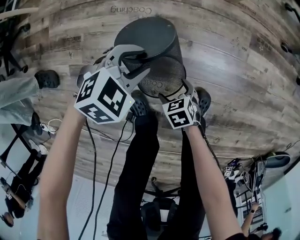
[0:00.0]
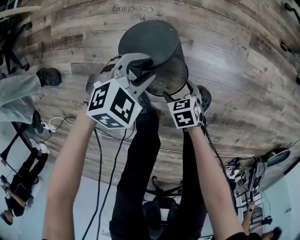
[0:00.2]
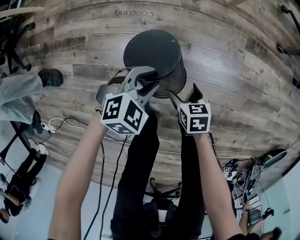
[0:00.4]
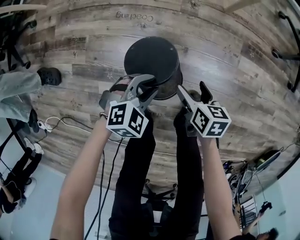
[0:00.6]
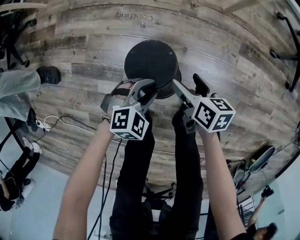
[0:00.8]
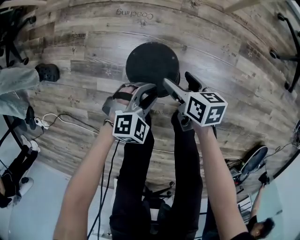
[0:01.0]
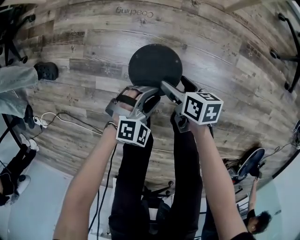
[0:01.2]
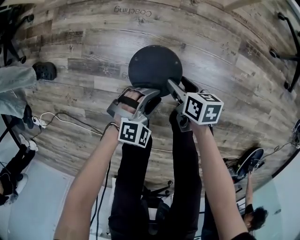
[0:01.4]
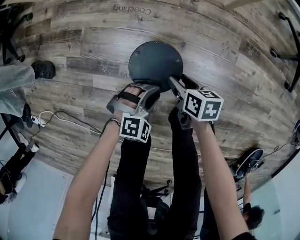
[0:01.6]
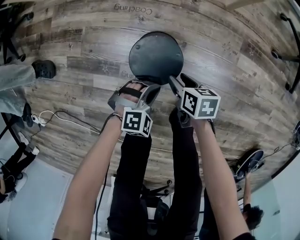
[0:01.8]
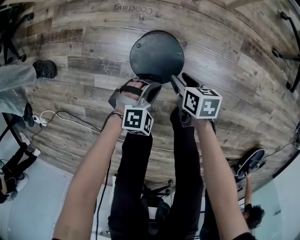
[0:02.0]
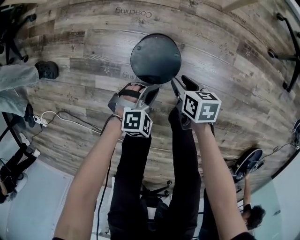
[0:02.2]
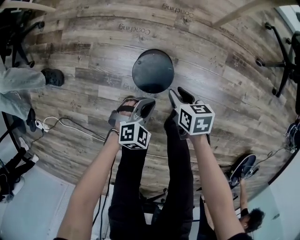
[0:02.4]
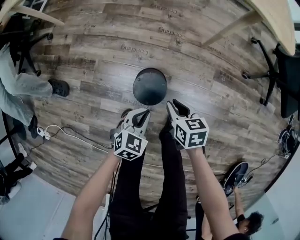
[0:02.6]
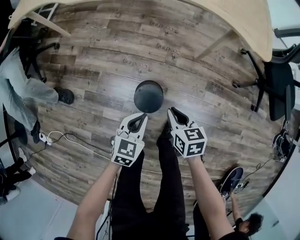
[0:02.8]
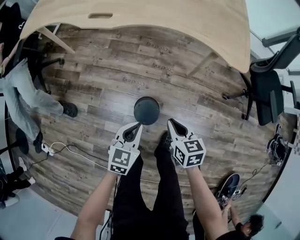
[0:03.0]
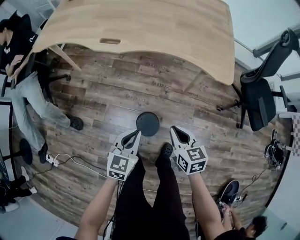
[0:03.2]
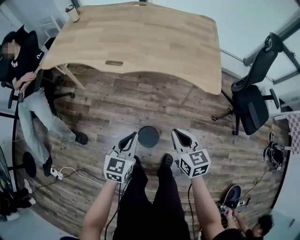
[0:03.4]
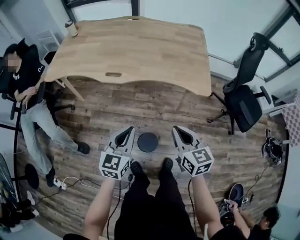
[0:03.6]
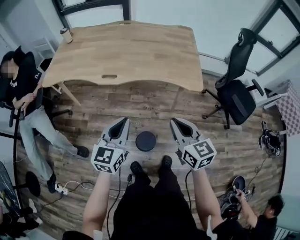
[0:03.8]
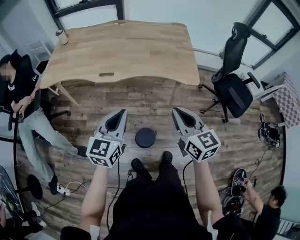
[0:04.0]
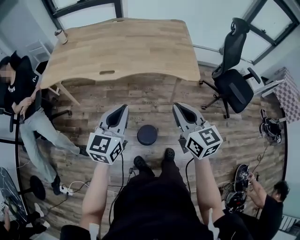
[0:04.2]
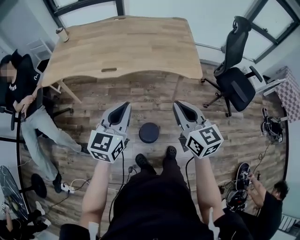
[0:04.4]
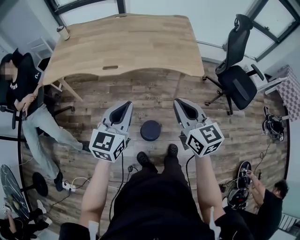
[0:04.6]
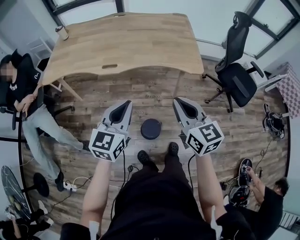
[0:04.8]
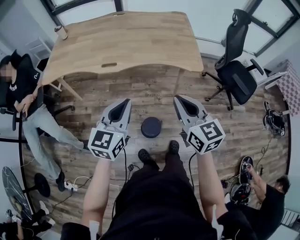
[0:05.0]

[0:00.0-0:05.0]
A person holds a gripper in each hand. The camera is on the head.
0:00.0 to 0:01.6: The left gripper shifts by roughly 15 cm. Meanwhile the right gripper is displaced upward by approximately 10 cm, changes its angle by some 30 degrees, and closes up.
0:01.6 to 0:03.4: The two grippers go roughly 60 cm upward. The left gripper tips its fingers upward by some 30 degrees. Meanwhile the right gripper swivels approximately 50 degrees, and closes its fingers.
0:03.4 to 0:05.0: The grippers both shift upward by approximately 20 cm. The right gripper rotates about 20 degrees.

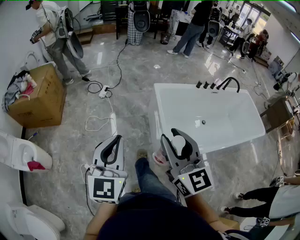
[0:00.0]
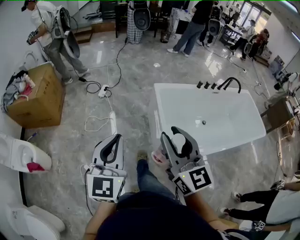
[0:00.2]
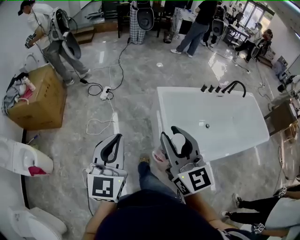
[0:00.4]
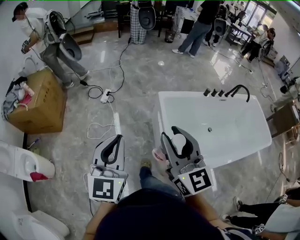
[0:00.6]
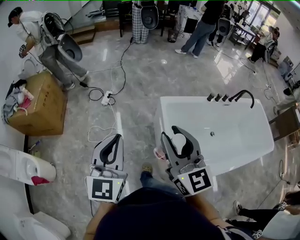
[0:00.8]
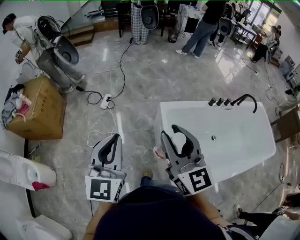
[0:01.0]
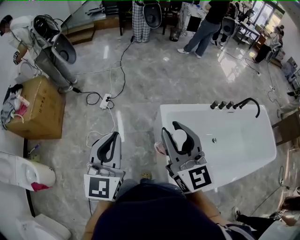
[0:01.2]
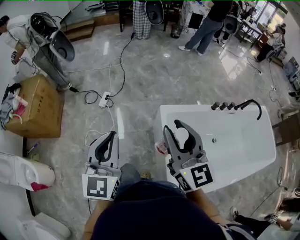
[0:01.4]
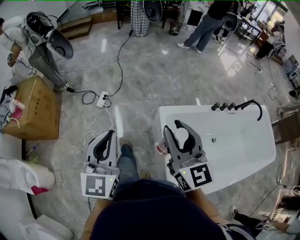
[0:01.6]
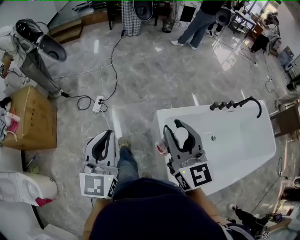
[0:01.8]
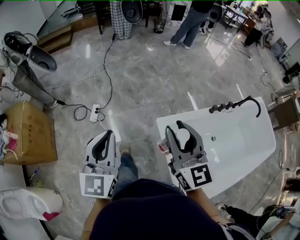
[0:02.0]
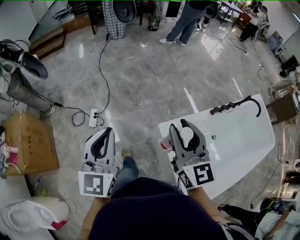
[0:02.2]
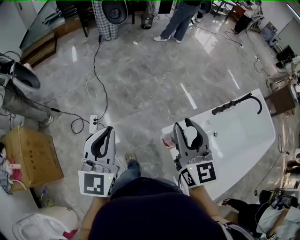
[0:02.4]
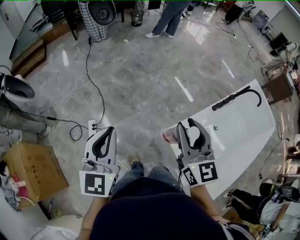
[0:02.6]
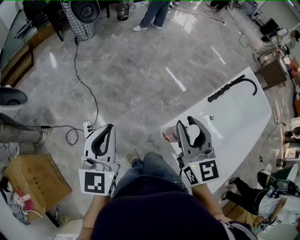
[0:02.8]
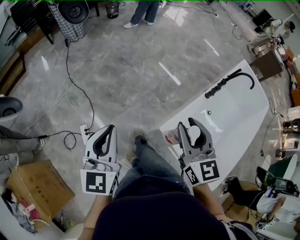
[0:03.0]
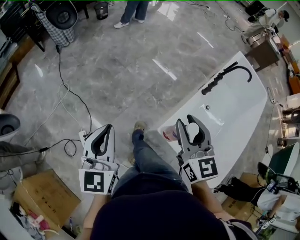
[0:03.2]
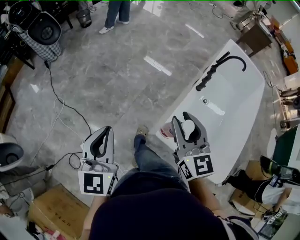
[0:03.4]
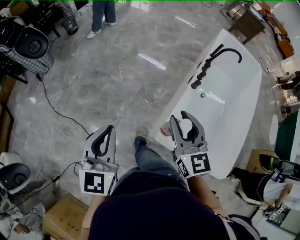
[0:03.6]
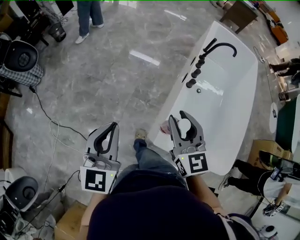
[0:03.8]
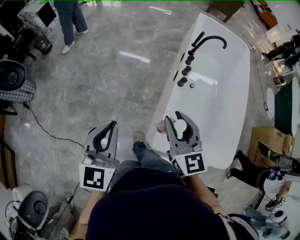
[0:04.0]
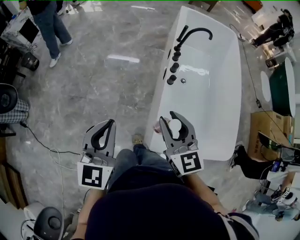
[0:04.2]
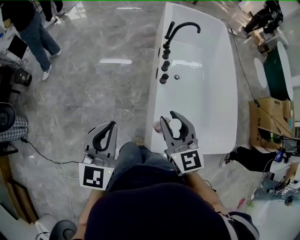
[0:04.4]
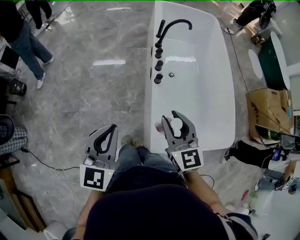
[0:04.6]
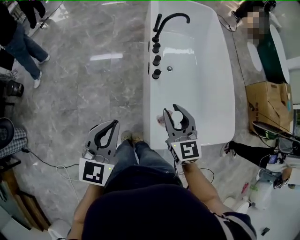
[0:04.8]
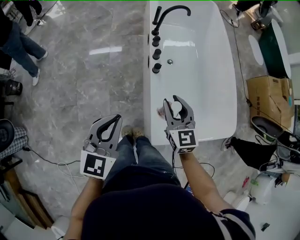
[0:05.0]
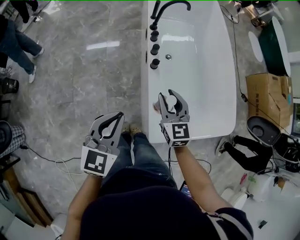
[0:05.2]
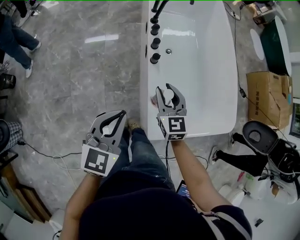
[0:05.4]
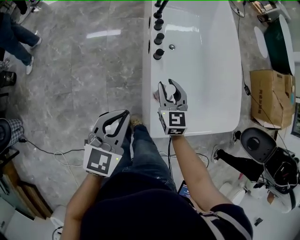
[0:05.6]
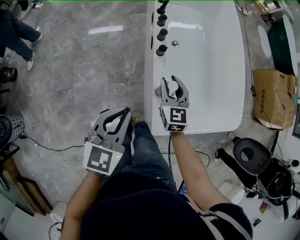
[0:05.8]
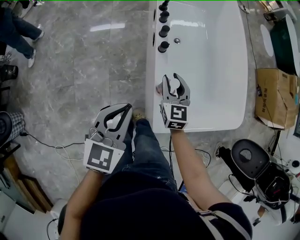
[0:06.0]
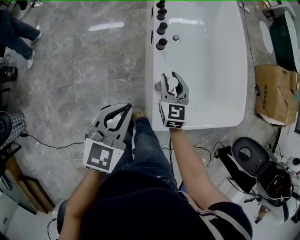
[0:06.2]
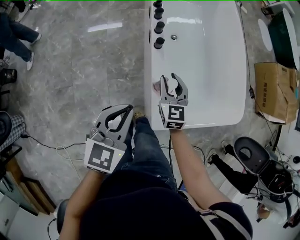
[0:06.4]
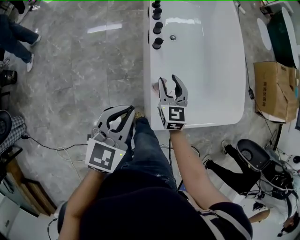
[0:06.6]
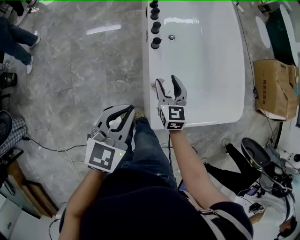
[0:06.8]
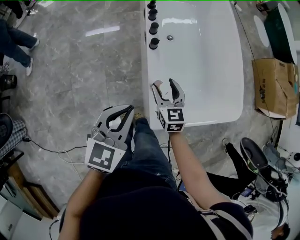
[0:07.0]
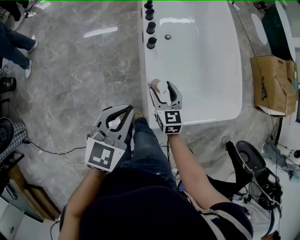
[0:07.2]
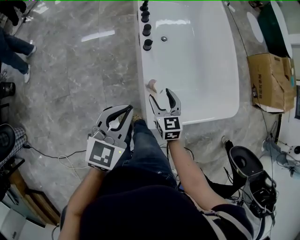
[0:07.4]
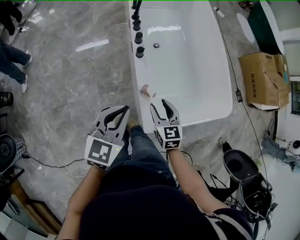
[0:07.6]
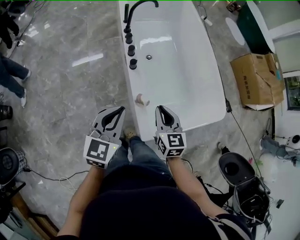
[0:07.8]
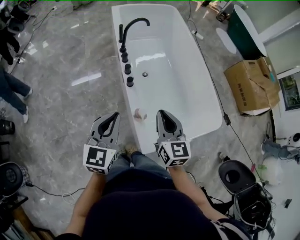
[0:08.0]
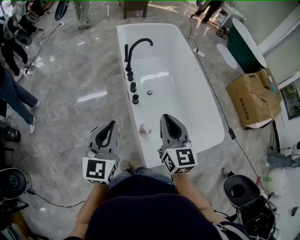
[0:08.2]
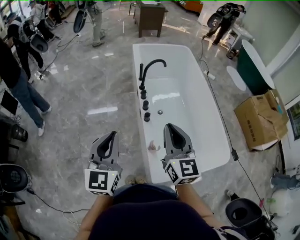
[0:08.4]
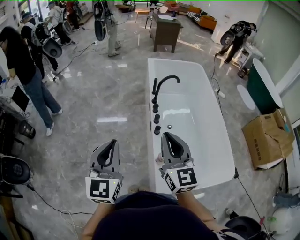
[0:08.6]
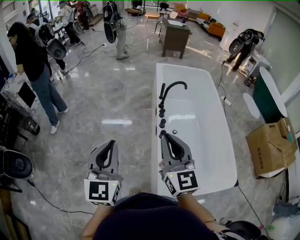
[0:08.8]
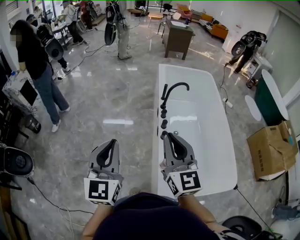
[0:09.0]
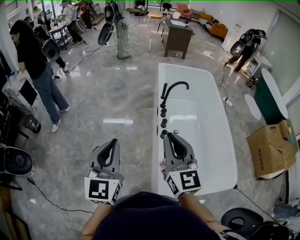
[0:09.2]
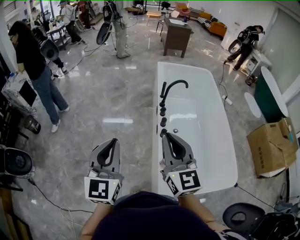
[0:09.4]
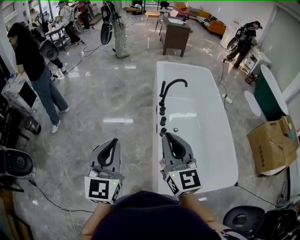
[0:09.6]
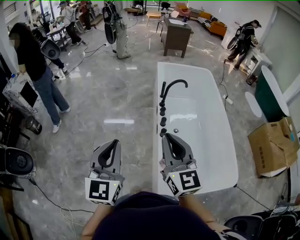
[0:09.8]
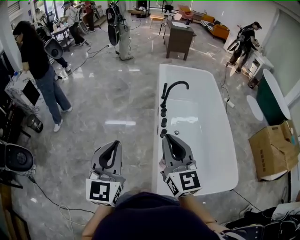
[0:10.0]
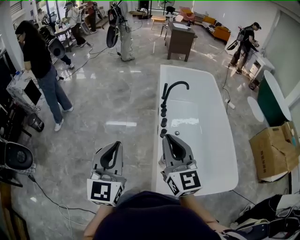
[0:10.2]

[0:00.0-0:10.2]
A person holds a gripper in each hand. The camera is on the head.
0:00.0 to 0:01.4: Both grippers are carried forward, some 40 cm.
0:01.4 to 0:03.0: The right gripper changes place by about 40 cm, and changes its angle by roughly 40 degrees; the left gripper ends up roughly 50 cm from where it was, and swivels some 30 degrees.
0:03.0 to 0:04.4: The right gripper changes place by roughly 30 cm, and swivels approximately 40 degrees, while the left gripper moves about 40 cm, and rotates roughly 50 degrees.
0:04.4 to 0:05.8: The left gripper heads downward, forward and to the right, covering roughly 15 cm, and changes its angle by approximately 30 degrees. The right gripper is displaced downward and forward by about 20 cm, and swivels some 20 degrees.
0:05.8 to 0:07.2: The right gripper travels backward by approximately 5 cm, and opens up. Meanwhile the left gripper moves to the right, approximately 5 cm.
0:07.2 to 0:08.8: The left gripper goes some 25 cm upward, and changes its angle by about 40 degrees, while the right gripper travels upward by approximately 40 cm, angles its fingers upward, by roughly 30 degrees, and closes its fingers.
0:08.8 to 0:10.2: The left gripper moves some 5 cm.

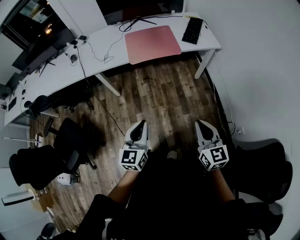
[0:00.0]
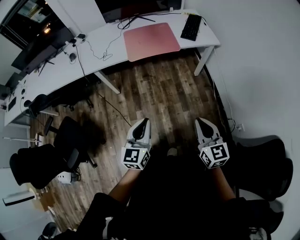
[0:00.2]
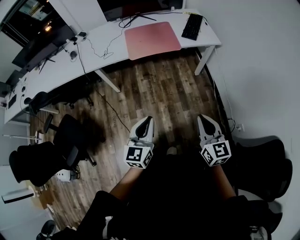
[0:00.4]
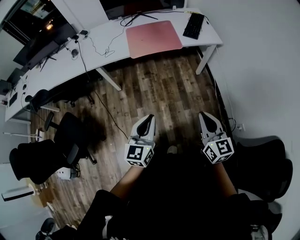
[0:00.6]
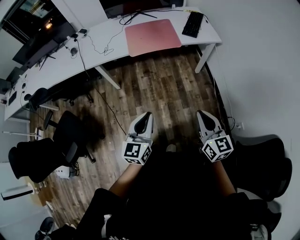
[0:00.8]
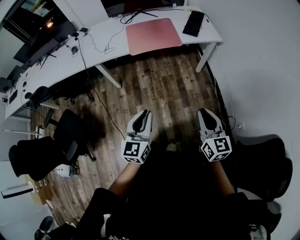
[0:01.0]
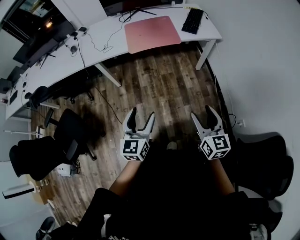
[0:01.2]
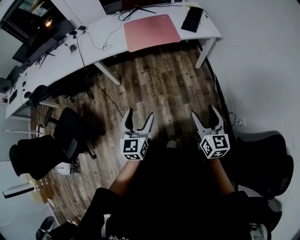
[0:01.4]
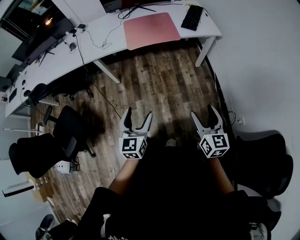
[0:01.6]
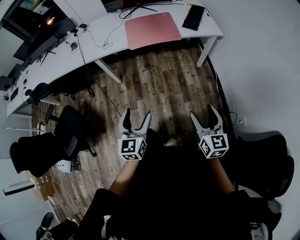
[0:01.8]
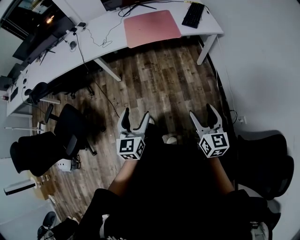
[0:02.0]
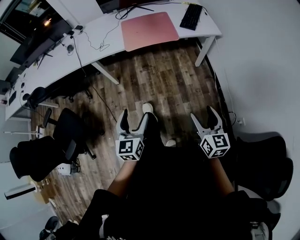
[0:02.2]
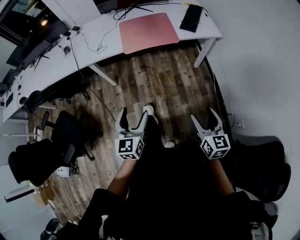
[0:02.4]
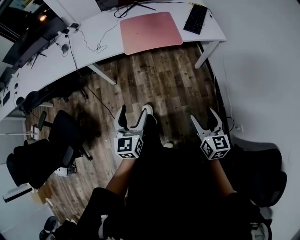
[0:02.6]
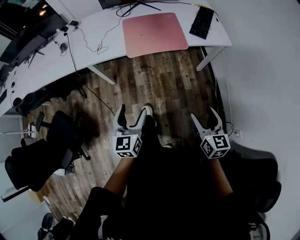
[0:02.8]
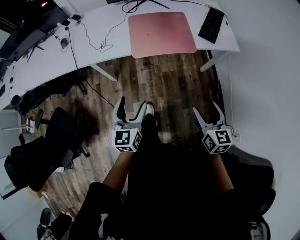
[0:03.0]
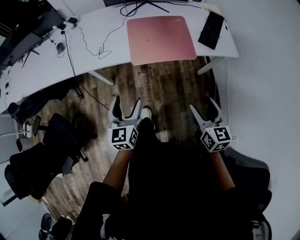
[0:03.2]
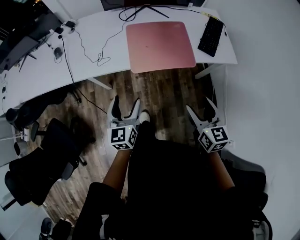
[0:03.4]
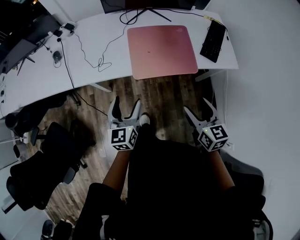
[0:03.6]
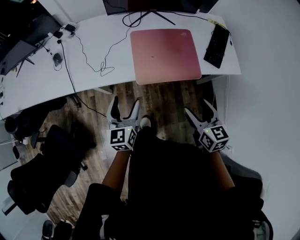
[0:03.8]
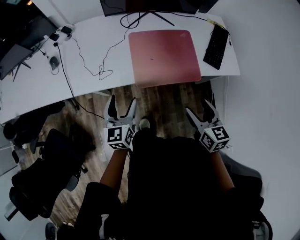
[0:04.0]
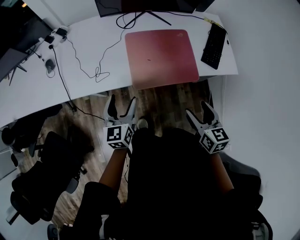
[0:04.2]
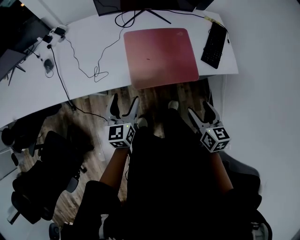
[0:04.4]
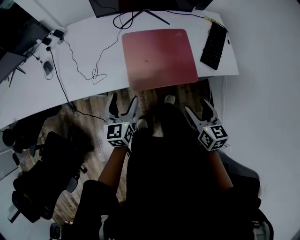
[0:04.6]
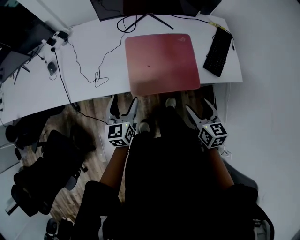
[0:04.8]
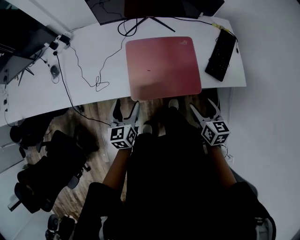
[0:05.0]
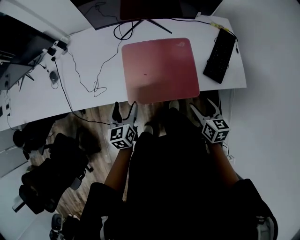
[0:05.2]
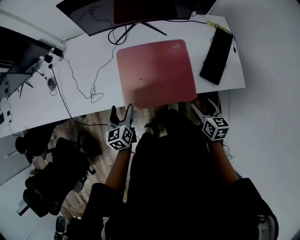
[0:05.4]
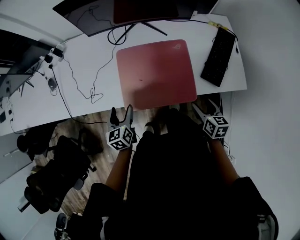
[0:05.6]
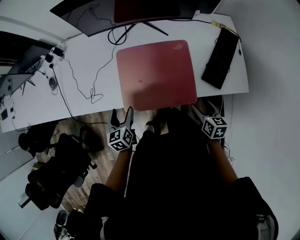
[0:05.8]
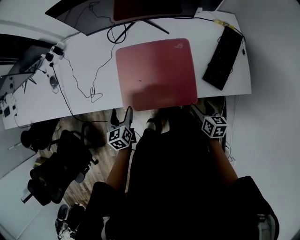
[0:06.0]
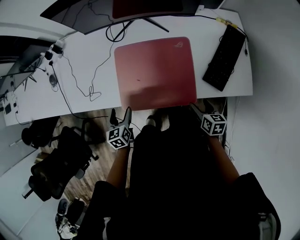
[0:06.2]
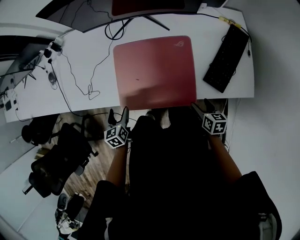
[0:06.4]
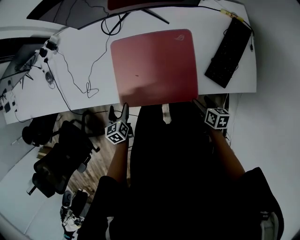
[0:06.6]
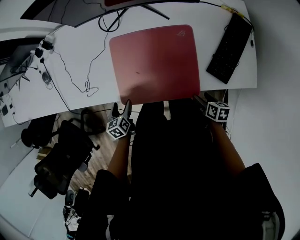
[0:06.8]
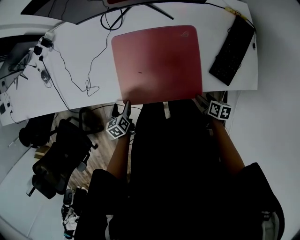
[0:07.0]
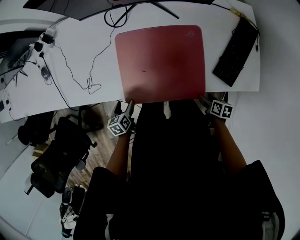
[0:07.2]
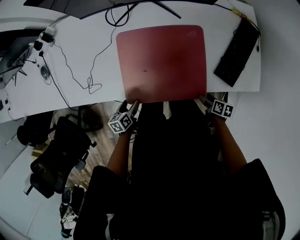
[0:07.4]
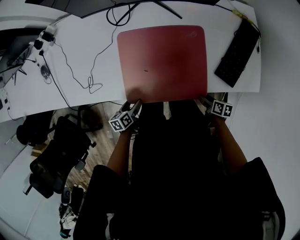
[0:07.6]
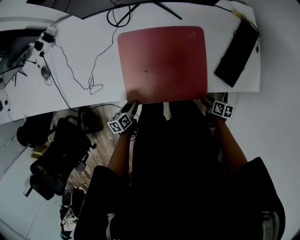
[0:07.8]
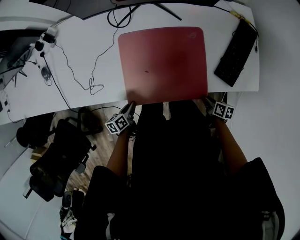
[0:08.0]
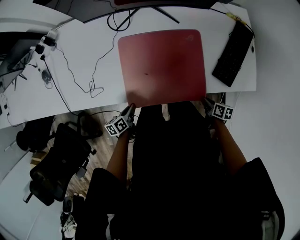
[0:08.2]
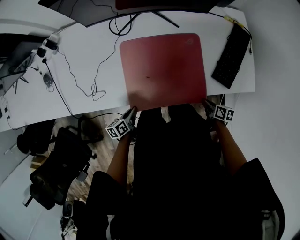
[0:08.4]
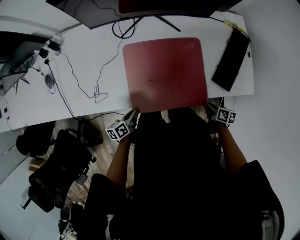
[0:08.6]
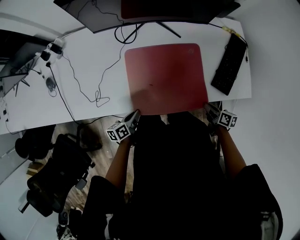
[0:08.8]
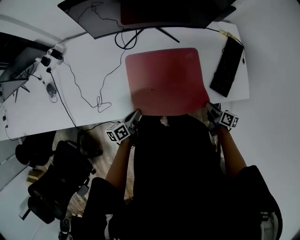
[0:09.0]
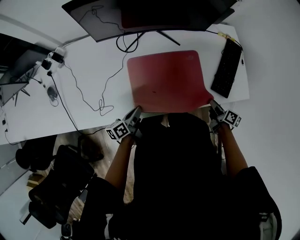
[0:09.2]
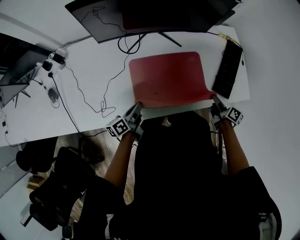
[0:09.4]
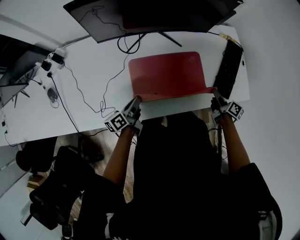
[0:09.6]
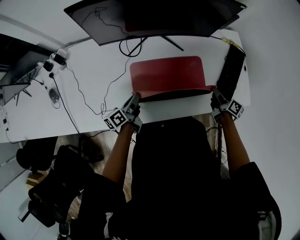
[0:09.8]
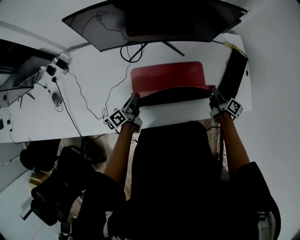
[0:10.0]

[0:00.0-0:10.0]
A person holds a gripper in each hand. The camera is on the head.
0:00.0 to 0:01.4: The right gripper shifts by about 5 cm, and opens up; the left gripper opens its fingers.
0:01.4 to 0:02.8: The two grippers go about 20 cm forward.
0:02.8 to 0:04.2: The two grippers go roughly 35 cm forward.
0:04.2 to 0:05.8: The left gripper shifts about 15 cm forward, to the right and downward, and turns by roughly 20 degrees; the right gripper travels to the right, forward and downward by approximately 30 cm.
0:05.8 to 0:07.2: The grippers both shift downward by some 15 cm. The left gripper turns by approximately 20 degrees, while the right gripper changes its angle by about 30 degrees.
0:07.2 to 0:08.6: The left gripper rotates some 30 degrees, and closes up. The right gripper shifts by about 5 cm, and closes its fingers.
0:08.6 to 0:10.0: Both grippers move forward and upward, approximately 20 cm. The right gripper turns by about 30 degrees.
